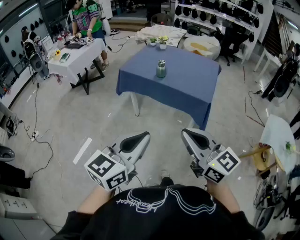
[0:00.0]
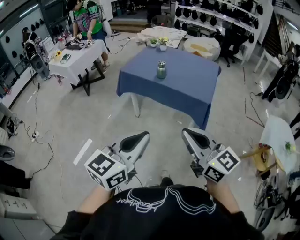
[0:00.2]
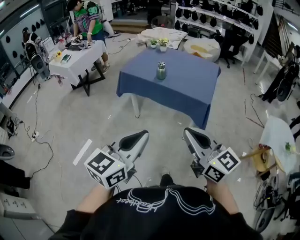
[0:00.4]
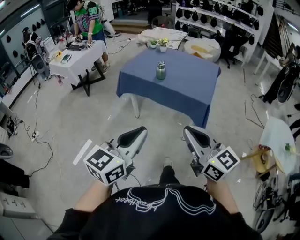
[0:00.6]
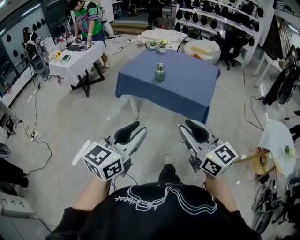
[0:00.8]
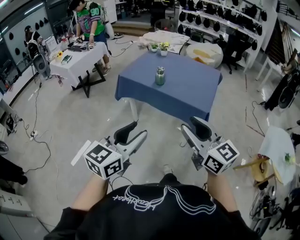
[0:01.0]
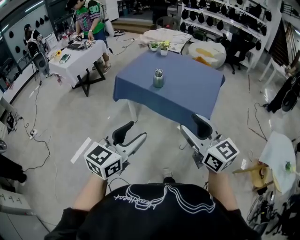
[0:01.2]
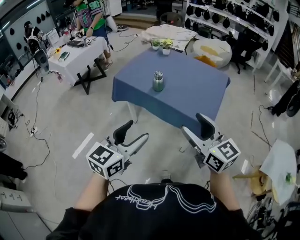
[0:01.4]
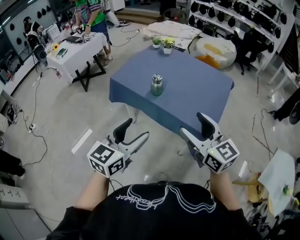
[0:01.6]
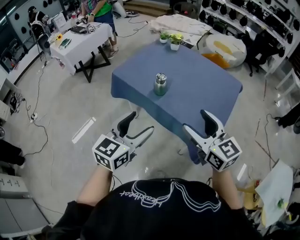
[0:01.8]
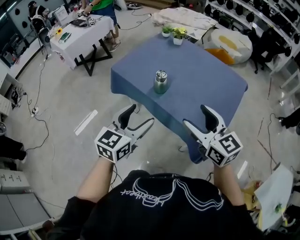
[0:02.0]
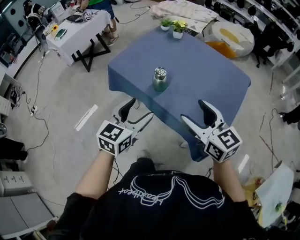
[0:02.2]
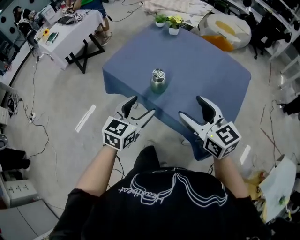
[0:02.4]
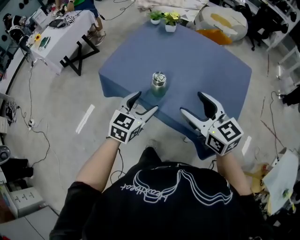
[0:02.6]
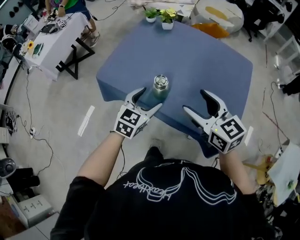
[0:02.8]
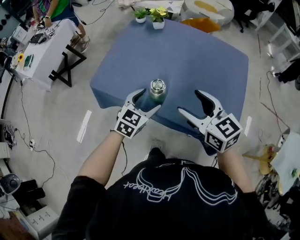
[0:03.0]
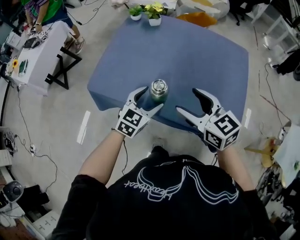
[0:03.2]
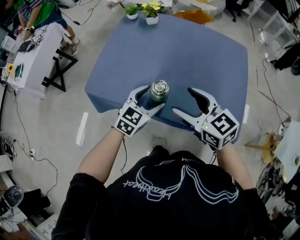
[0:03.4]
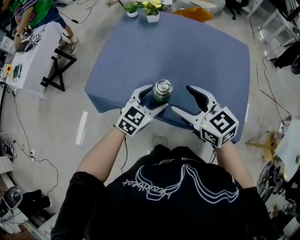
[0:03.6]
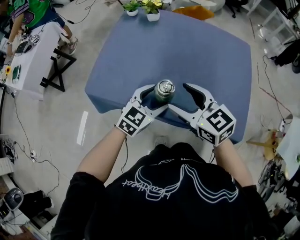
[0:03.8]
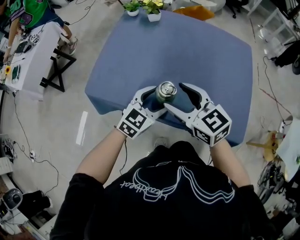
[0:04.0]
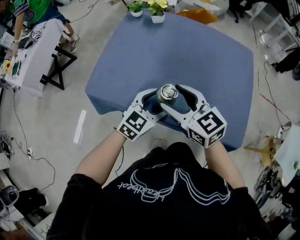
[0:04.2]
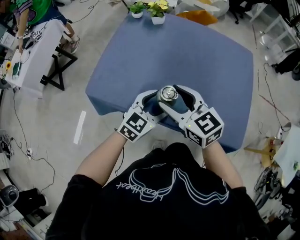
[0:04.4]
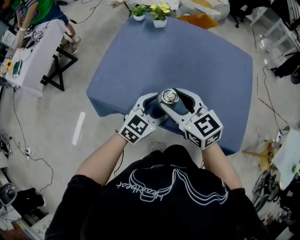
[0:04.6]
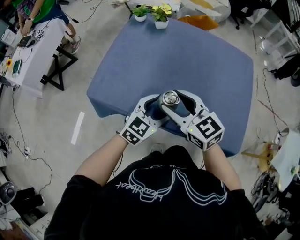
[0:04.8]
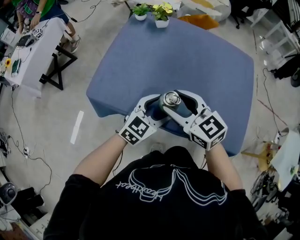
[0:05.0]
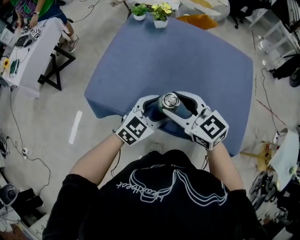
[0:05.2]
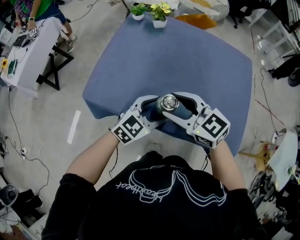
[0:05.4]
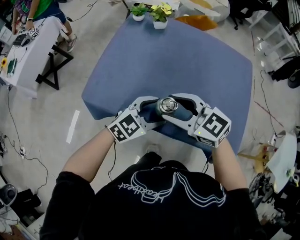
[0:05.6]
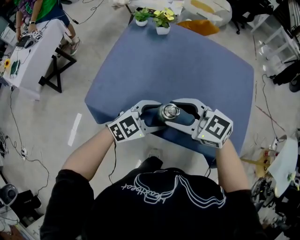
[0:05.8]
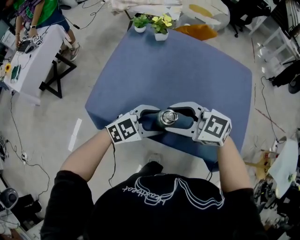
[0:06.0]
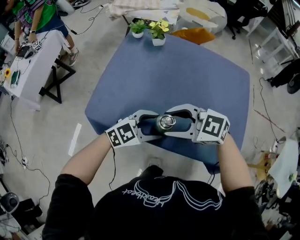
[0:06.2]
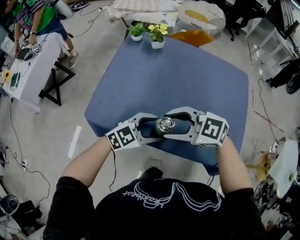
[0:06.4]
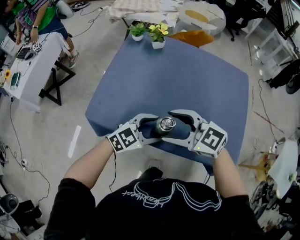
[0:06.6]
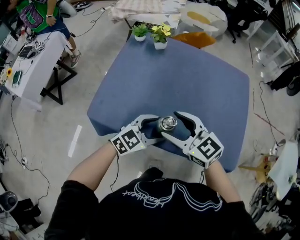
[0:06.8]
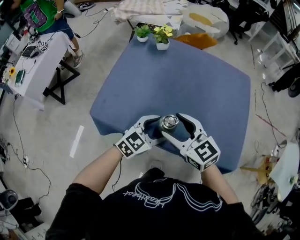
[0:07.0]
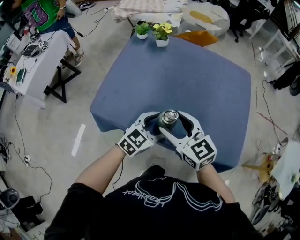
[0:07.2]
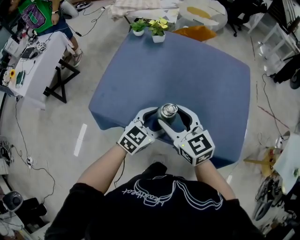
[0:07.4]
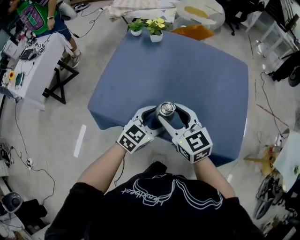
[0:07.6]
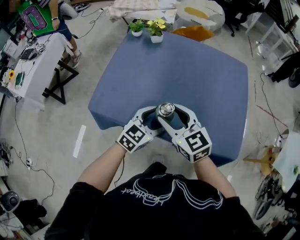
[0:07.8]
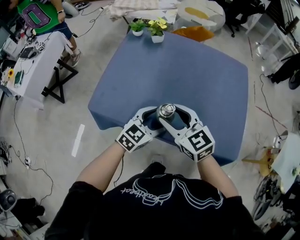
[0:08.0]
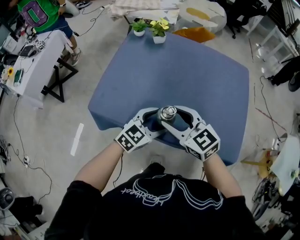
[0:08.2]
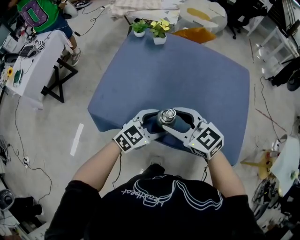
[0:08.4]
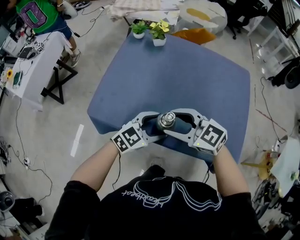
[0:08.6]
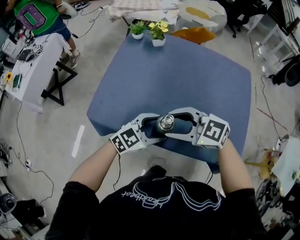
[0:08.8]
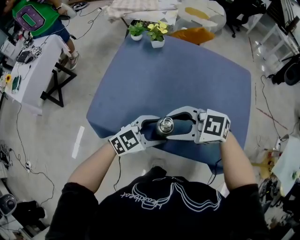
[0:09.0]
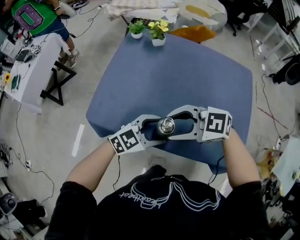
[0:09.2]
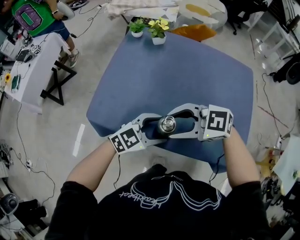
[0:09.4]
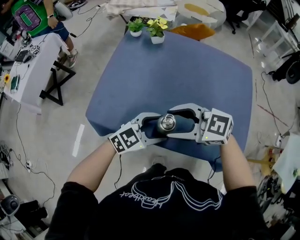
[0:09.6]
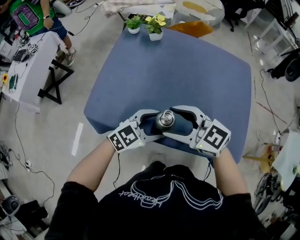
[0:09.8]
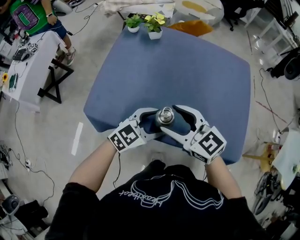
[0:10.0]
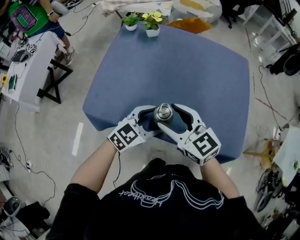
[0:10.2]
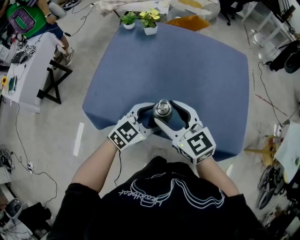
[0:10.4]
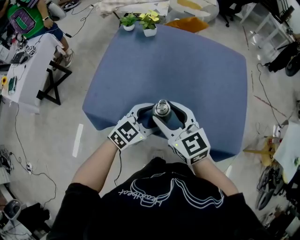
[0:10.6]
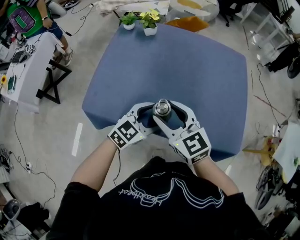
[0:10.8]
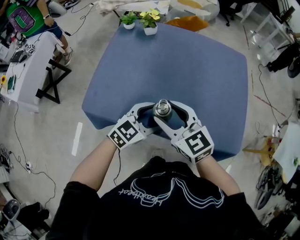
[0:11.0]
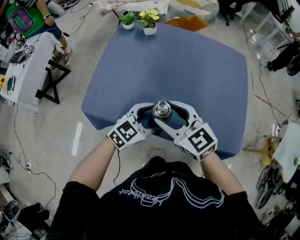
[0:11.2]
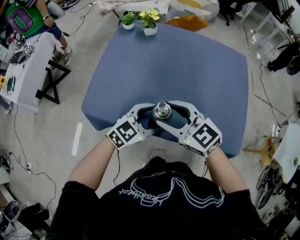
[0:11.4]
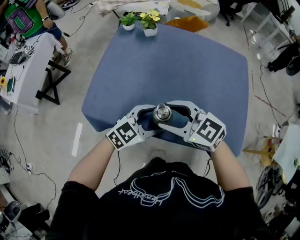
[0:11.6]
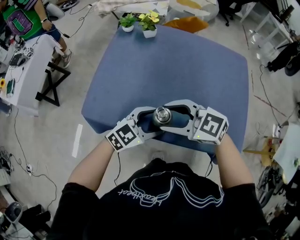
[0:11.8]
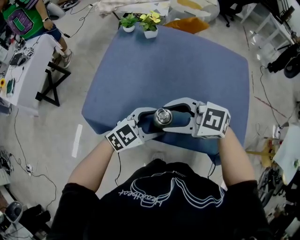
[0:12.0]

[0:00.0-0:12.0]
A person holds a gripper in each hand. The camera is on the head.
0:00.0 to 0:01.6: The two grippers go approximately 30 cm forward. The right gripper opens. Meanwhile the left gripper opens its fingers.
0:01.6 to 0:03.0: Both grippers travel together forward and downward, approximately 30 cm. The left gripper turns by about 30 degrees.
0:03.0 to 0:04.4: The right gripper heads to the left and forward, covering roughly 10 cm.
0:04.4 to 0:06.0: The left gripper turns by roughly 30 degrees. The right gripper turns by roughly 30 degrees.
0:06.0 to 0:07.6: The left gripper turns by approximately 20 degrees; the right gripper rotates approximately 40 degrees.
0:07.6 to 0:09.0: The left gripper changes its angle by roughly 20 degrees. Meanwhile the right gripper swivels some 50 degrees.
0:09.0 to 0:10.4: The right gripper swivels roughly 50 degrees.
0:10.4 to 0:12.0: The right gripper turns by approximately 40 degrees.

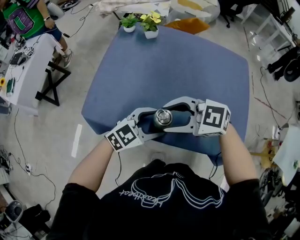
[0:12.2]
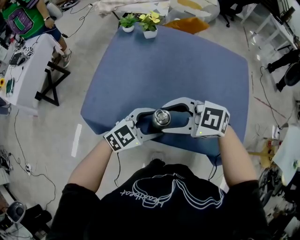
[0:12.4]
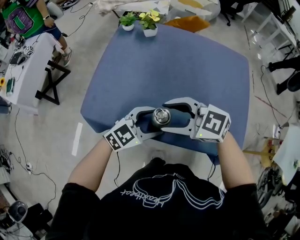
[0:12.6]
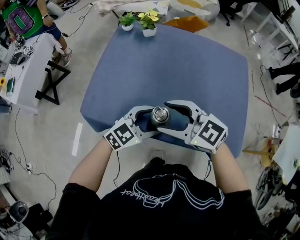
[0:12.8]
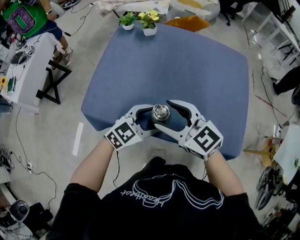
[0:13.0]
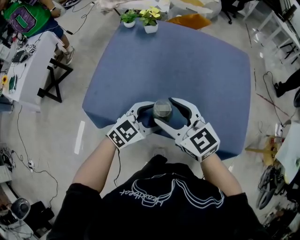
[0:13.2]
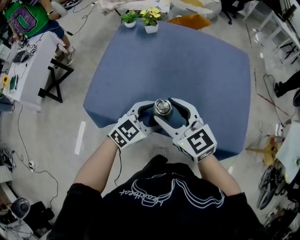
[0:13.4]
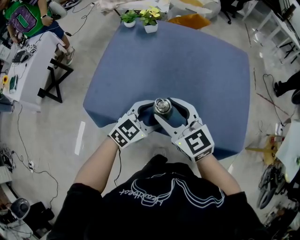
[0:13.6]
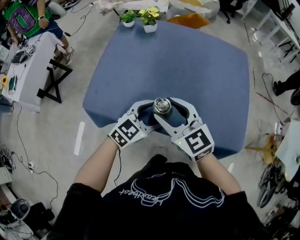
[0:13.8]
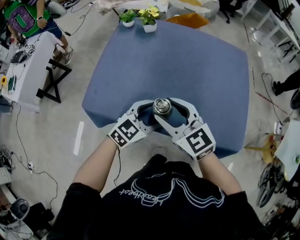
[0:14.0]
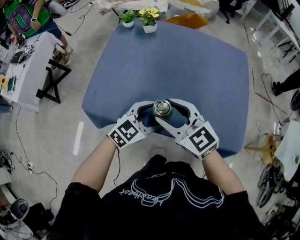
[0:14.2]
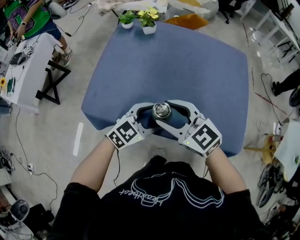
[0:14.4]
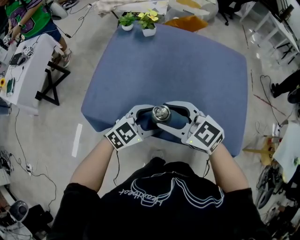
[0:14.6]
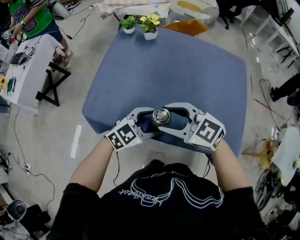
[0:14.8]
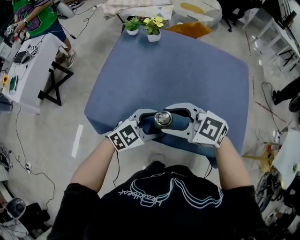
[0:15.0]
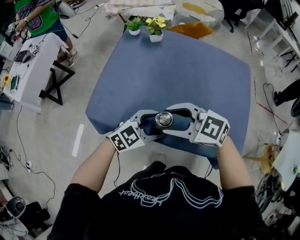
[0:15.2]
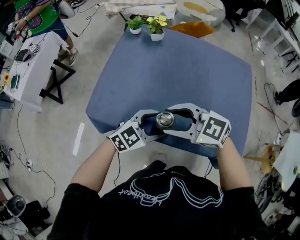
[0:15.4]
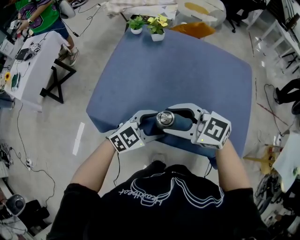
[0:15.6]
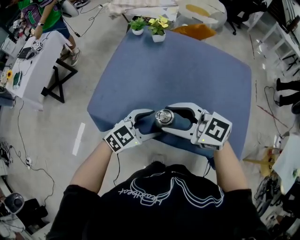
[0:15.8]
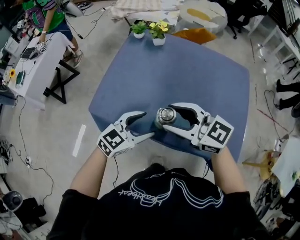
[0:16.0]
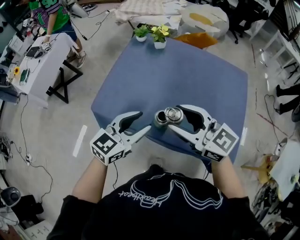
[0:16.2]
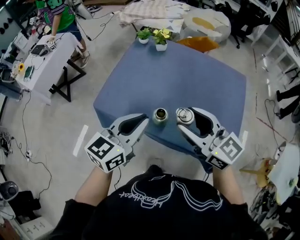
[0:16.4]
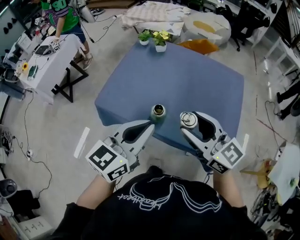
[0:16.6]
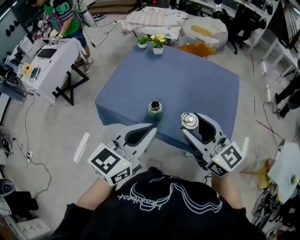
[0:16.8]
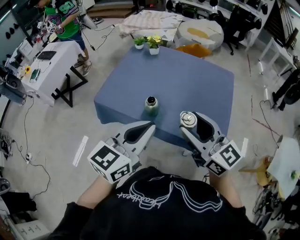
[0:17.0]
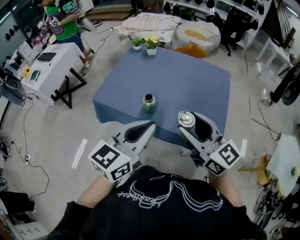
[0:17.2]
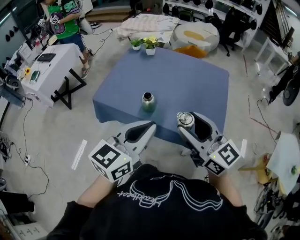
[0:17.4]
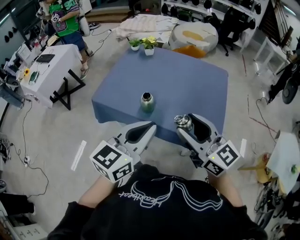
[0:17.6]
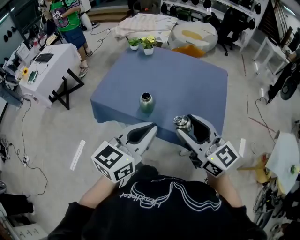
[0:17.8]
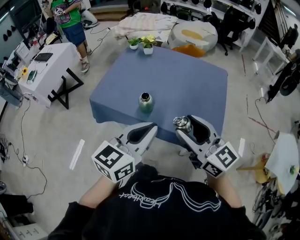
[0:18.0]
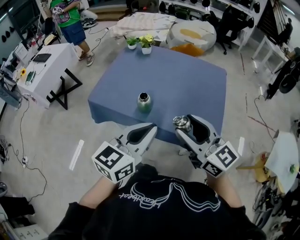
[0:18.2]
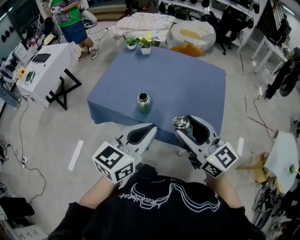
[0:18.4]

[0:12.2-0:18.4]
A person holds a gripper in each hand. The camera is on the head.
0:12.2 to 0:13.8: The right gripper changes its angle by about 50 degrees.
0:13.8 to 0:15.4: The right gripper changes its angle by roughly 40 degrees.
0:15.4 to 0:16.8: The left gripper shifts approximately 25 cm upward, turns by roughly 40 degrees, and closes; the right gripper shifts by about 20 cm, and swivels some 40 degrees.
0:16.8 to 0:18.4: The right gripper travels backward by some 5 cm. Meanwhile the left gripper moves about 5 cm.

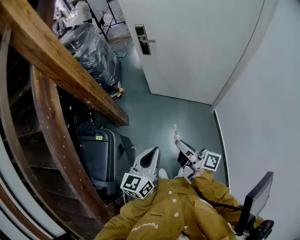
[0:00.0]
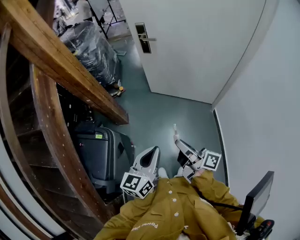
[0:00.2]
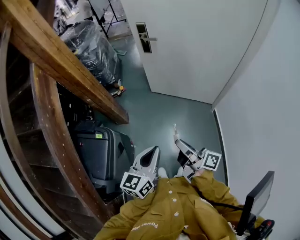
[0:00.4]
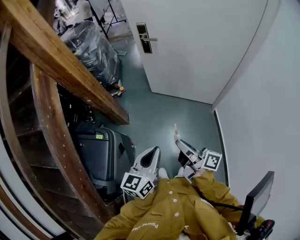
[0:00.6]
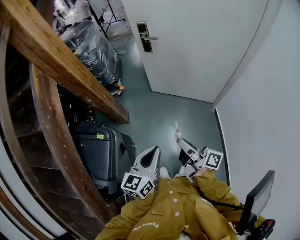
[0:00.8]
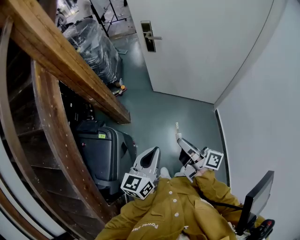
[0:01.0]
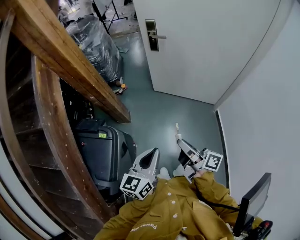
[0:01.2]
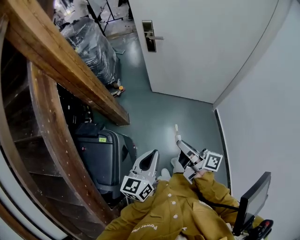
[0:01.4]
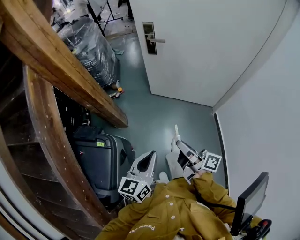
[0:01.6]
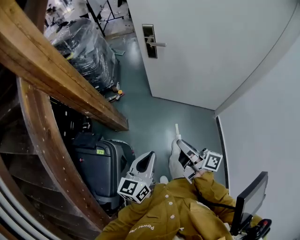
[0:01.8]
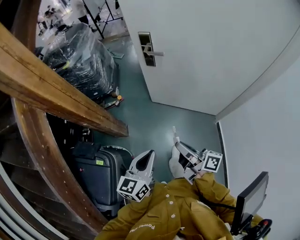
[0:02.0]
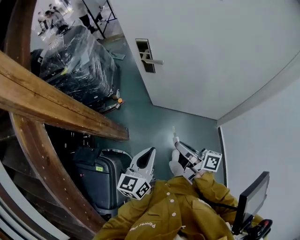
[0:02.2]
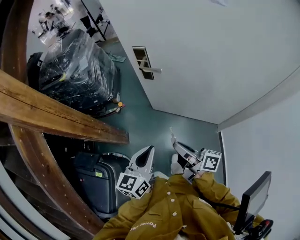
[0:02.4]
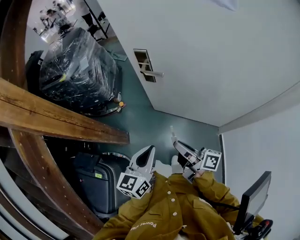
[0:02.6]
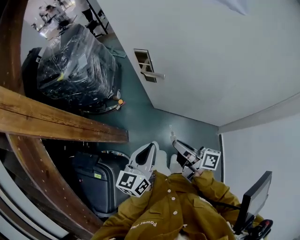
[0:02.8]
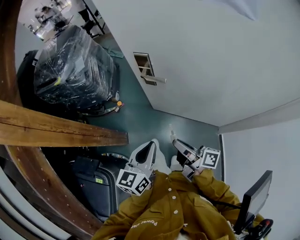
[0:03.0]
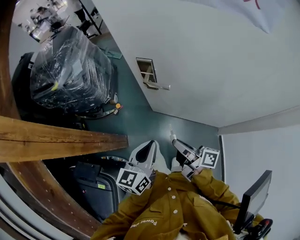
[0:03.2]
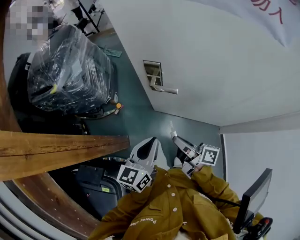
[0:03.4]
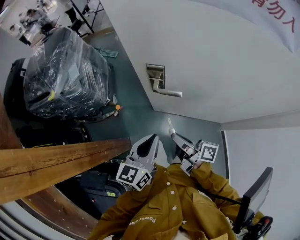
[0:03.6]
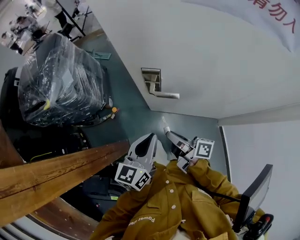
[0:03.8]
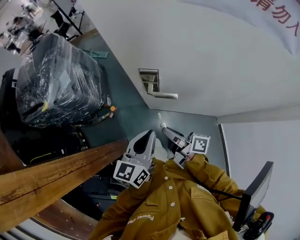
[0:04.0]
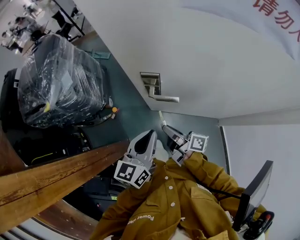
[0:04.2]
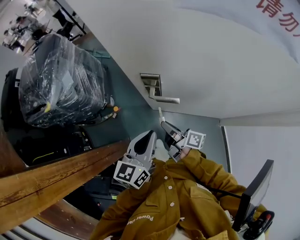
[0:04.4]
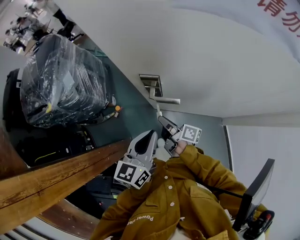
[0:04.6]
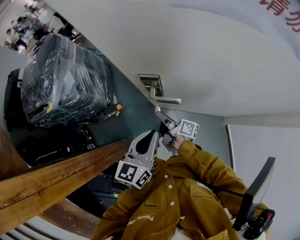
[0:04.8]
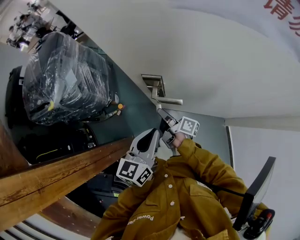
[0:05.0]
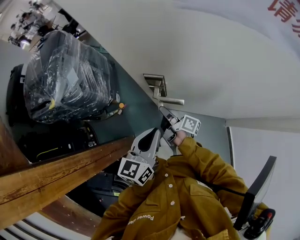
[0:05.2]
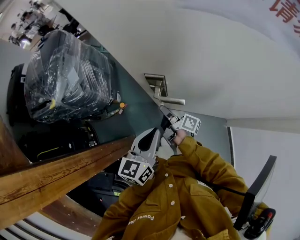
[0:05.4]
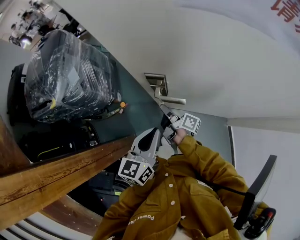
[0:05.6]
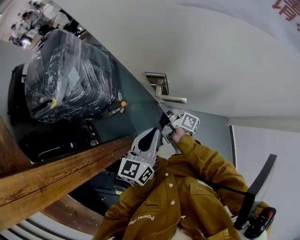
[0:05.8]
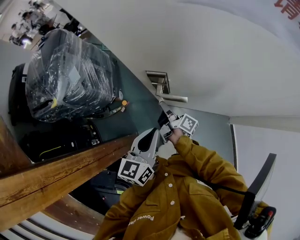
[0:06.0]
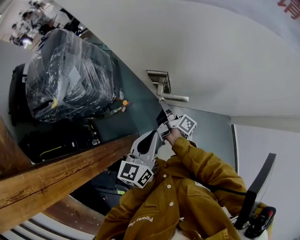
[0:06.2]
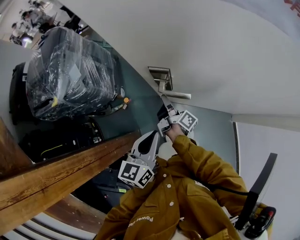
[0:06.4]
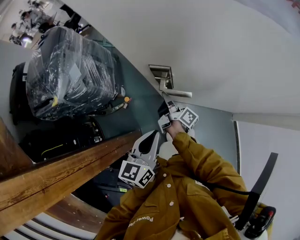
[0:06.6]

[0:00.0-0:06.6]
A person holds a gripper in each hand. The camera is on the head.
0:00.0 to 0:01.6: The left gripper changes place by roughly 10 cm.
0:01.6 to 0:03.2: The left gripper shifts by roughly 50 cm.
0:03.2 to 0:05.0: The left gripper changes place by approximately 15 cm.
